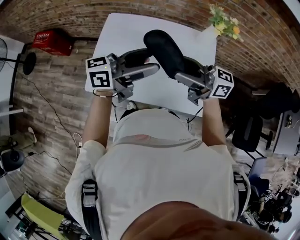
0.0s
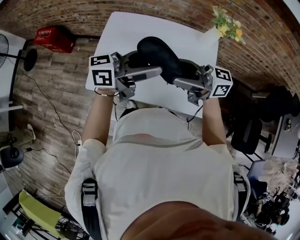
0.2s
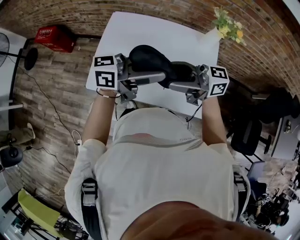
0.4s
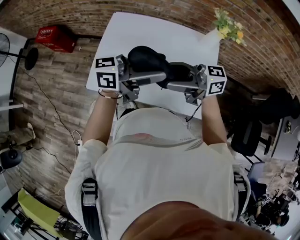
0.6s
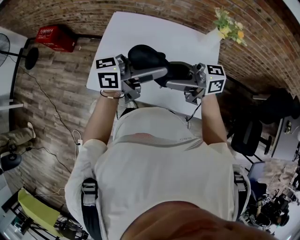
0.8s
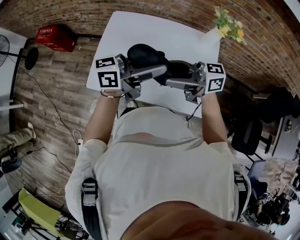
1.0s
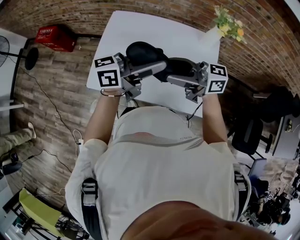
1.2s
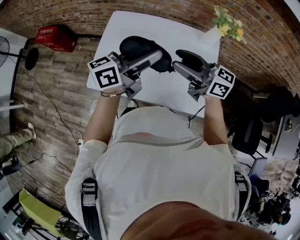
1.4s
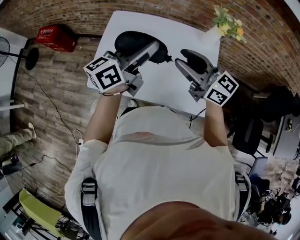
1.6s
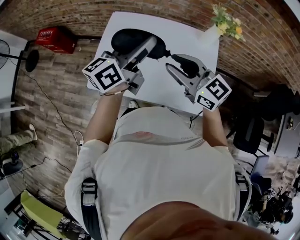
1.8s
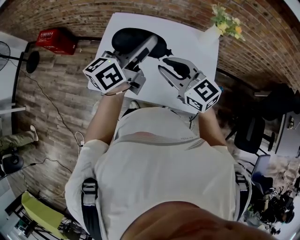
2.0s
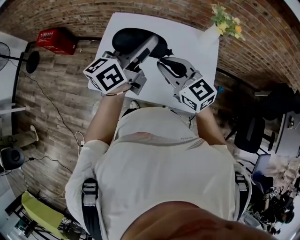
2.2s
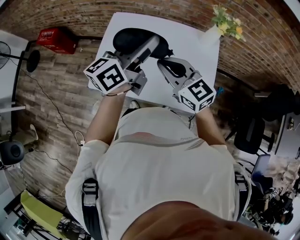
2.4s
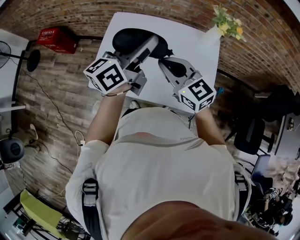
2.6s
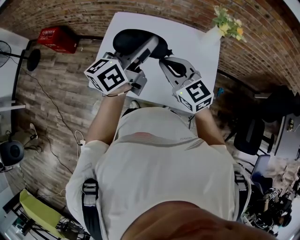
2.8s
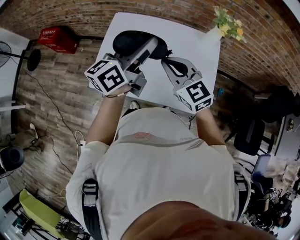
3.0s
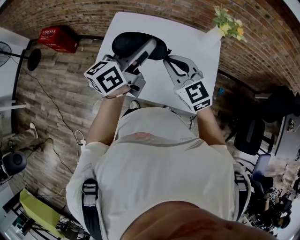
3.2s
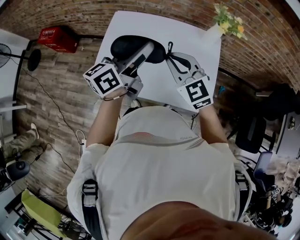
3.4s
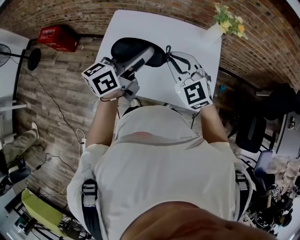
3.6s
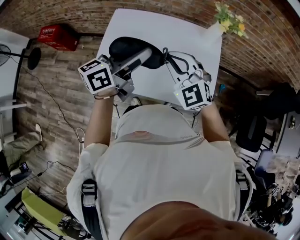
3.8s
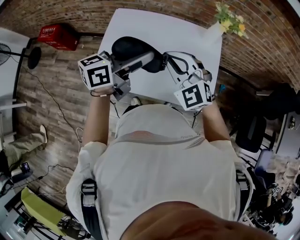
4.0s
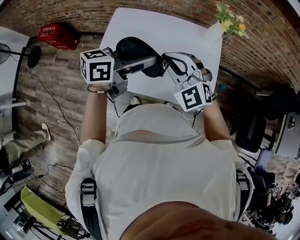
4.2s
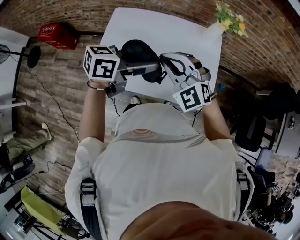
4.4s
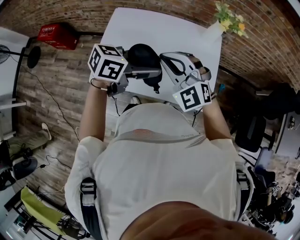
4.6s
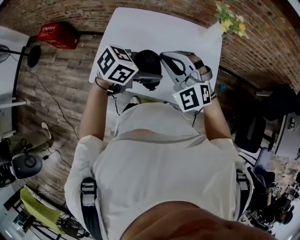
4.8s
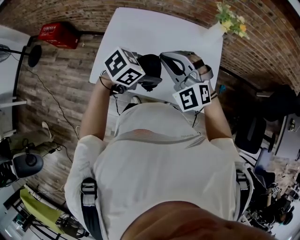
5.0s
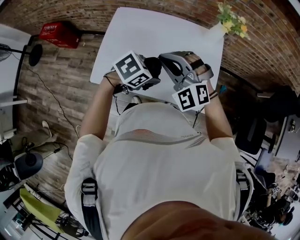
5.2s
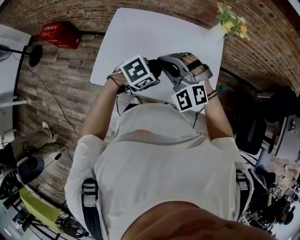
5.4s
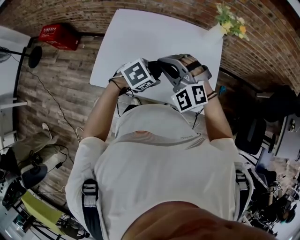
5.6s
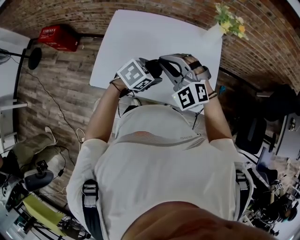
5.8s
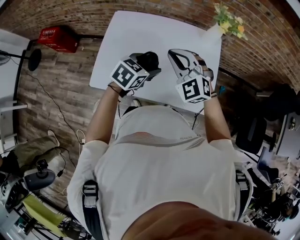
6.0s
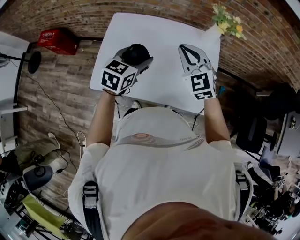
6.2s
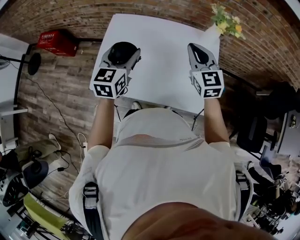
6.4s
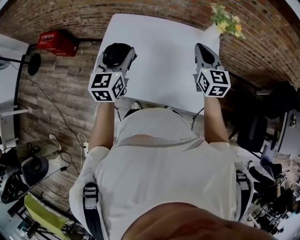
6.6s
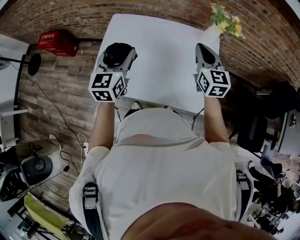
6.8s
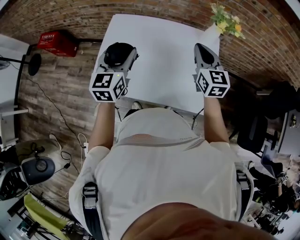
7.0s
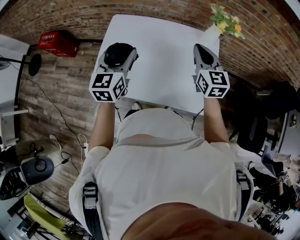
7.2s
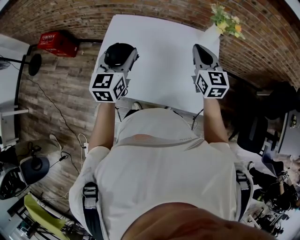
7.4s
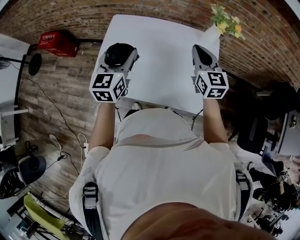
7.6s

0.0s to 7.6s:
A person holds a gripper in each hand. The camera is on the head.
0.0s to 1.6s: The right gripper changes its angle by some 30 degrees. Meanwhile the left gripper ends up about 5 cm from where it was, and turns by about 30 degrees.
1.6s to 3.0s: The right gripper travels to the left by roughly 5 cm, and changes its angle by some 30 degrees.
3.0s to 4.6s: The right gripper rotates roughly 40 degrees. Meanwhile the left gripper travels backward and downward by about 10 cm, and swivels approximately 50 degrees.
4.6s to 6.0s: The right gripper shifts by roughly 5 cm. Meanwhile the left gripper is displaced downward by some 10 cm, and rotates approximately 30 degrees.
6.0s to 7.6s: The right gripper moves to the right, about 10 cm, and rolls clockwise, seen from behind, by approximately 40 degrees; the left gripper shifts about 15 cm to the left and upward, and changes its angle by roughly 50 degrees.

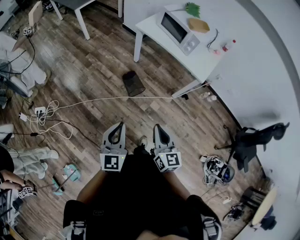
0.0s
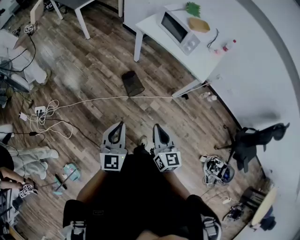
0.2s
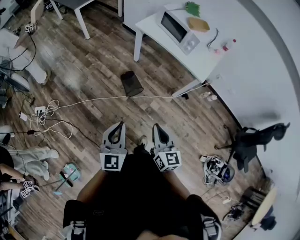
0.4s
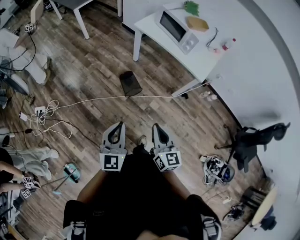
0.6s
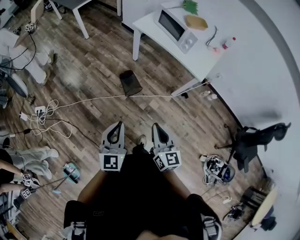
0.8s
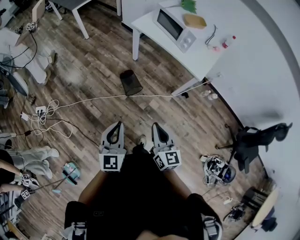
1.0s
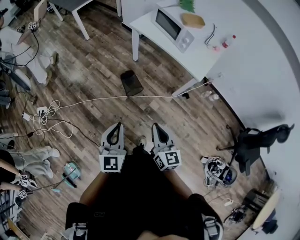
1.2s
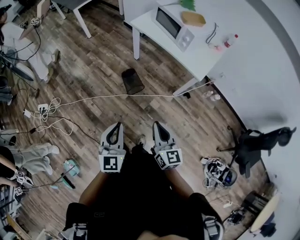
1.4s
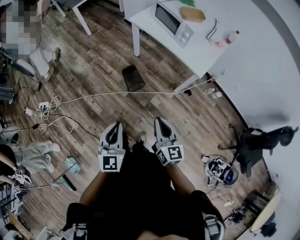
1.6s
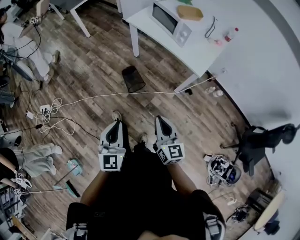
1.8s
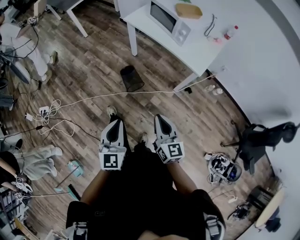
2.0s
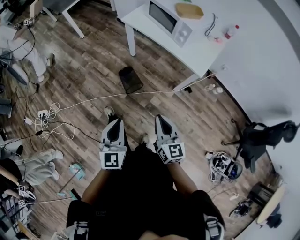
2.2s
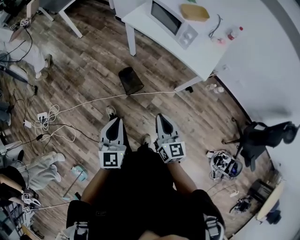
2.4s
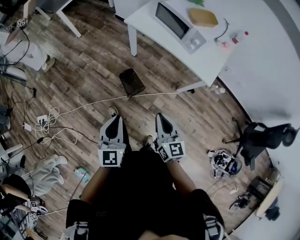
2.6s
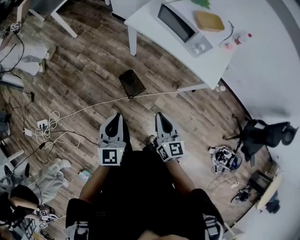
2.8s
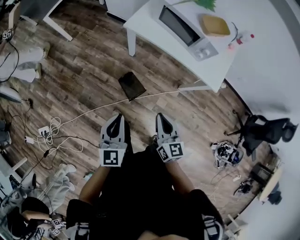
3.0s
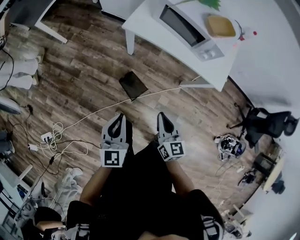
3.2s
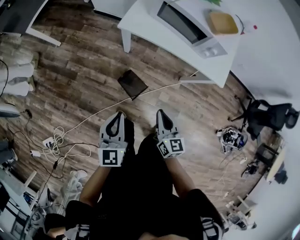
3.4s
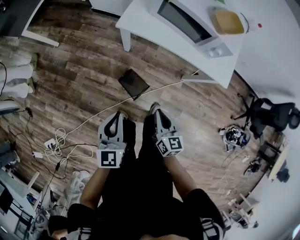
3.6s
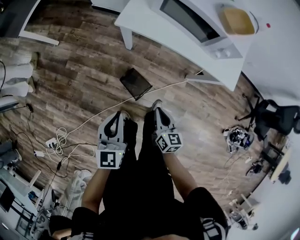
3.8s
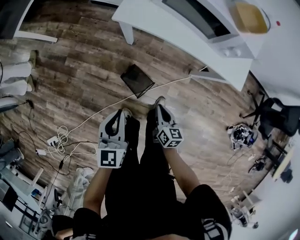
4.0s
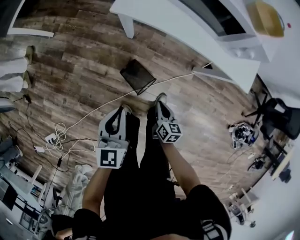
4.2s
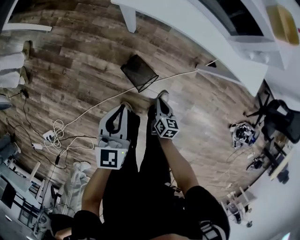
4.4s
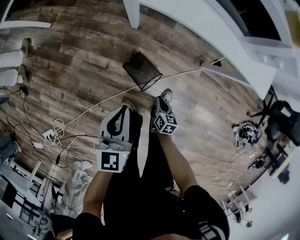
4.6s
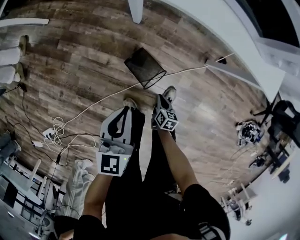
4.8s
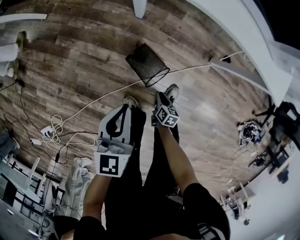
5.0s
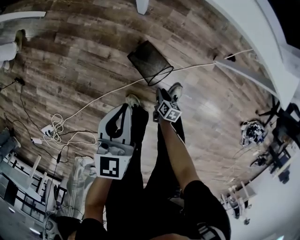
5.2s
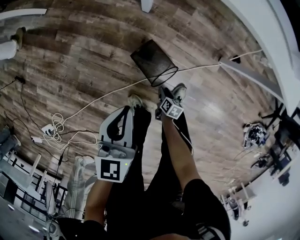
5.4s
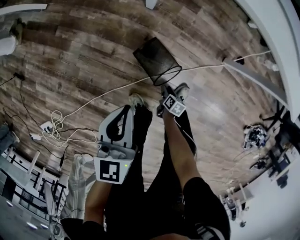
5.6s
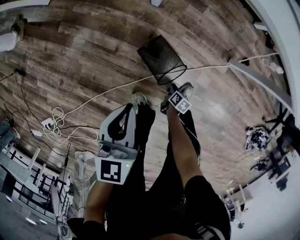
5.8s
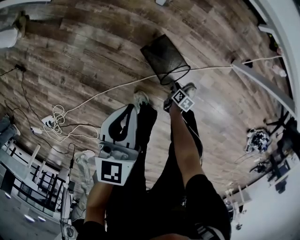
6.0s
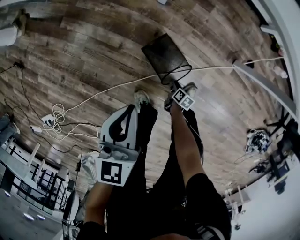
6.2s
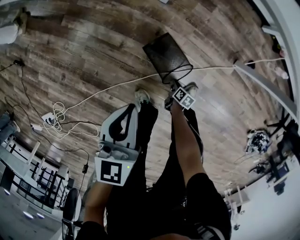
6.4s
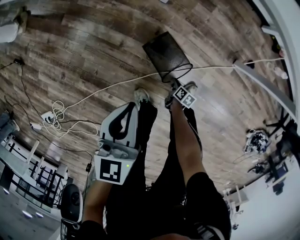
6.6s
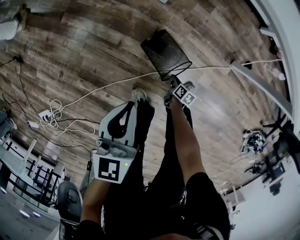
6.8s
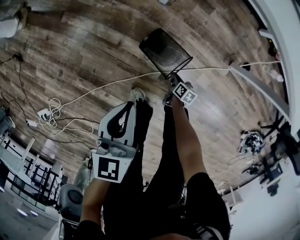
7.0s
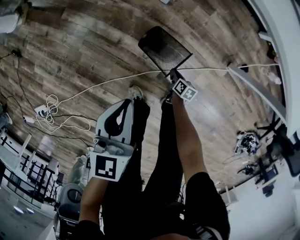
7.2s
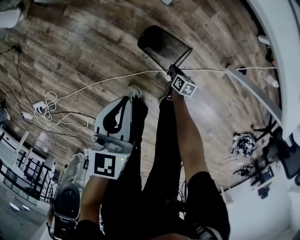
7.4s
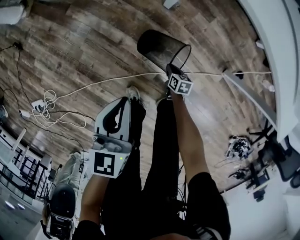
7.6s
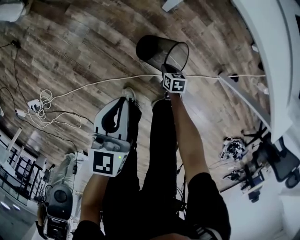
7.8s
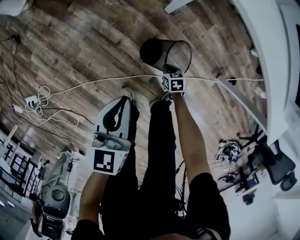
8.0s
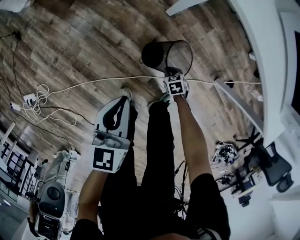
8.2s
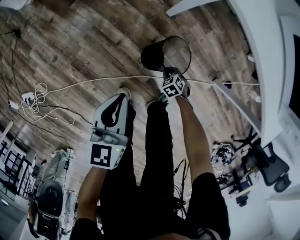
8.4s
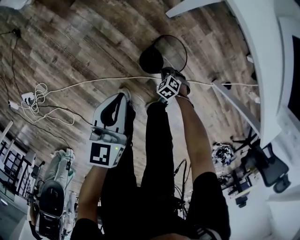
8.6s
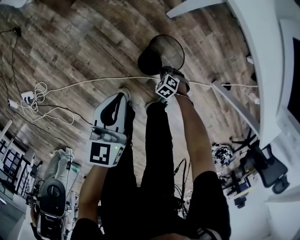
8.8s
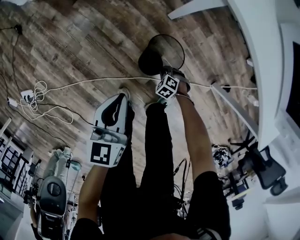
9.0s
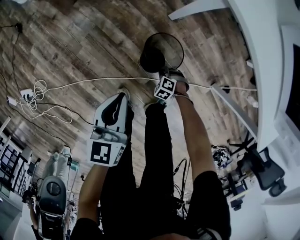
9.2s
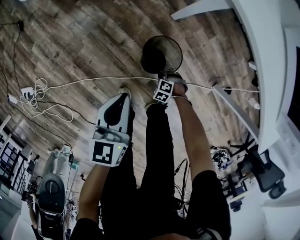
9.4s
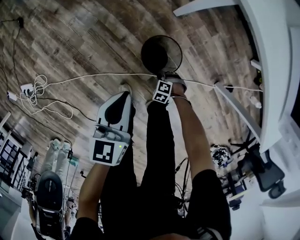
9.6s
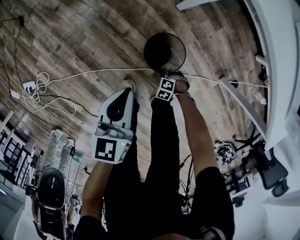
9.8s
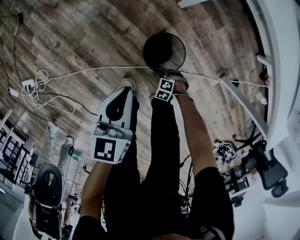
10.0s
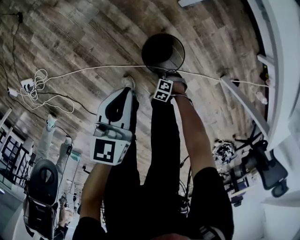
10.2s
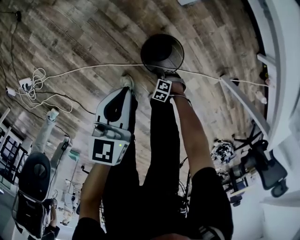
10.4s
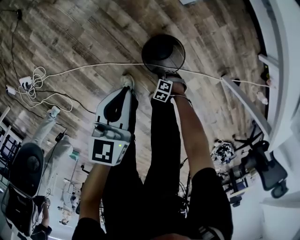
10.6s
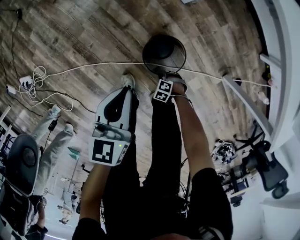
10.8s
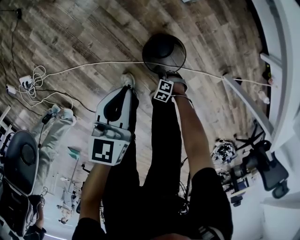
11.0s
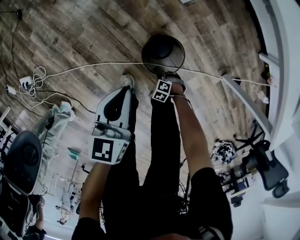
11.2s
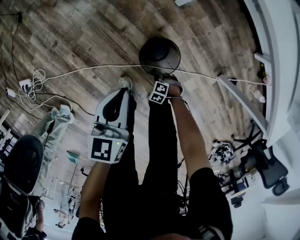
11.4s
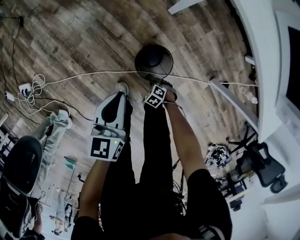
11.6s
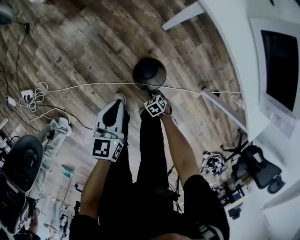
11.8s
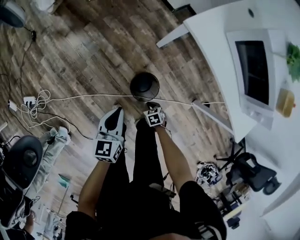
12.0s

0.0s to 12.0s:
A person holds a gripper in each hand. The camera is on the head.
0.0s to 1.6s: The grippers both shift to the right by roughly 10 cm.
1.6s to 3.0s: The right gripper goes approximately 30 cm forward and to the left; the left gripper travels forward by about 30 cm.
3.0s to 4.4s: The left gripper is displaced downward and forward by approximately 25 cm, while the right gripper goes some 40 cm downward, and swivels some 30 degrees.
4.4s to 6.0s: The left gripper is displaced downward and to the left by some 20 cm. The right gripper moves downward, roughly 40 cm, swivels about 30 degrees, and opens.
6.0s to 7.6s: The right gripper travels forward and upward by approximately 15 cm, rotates roughly 40 degrees, and closes its fingers.
7.6s to 9.0s: The right gripper rotates around the line of its fingers by roughly 80 degrees, counterclockwise from behind.
9.0s to 10.4s: The left gripper shifts by roughly 5 cm, while the right gripper changes place by some 15 cm.
10.4s to 12.0s: The left gripper moves upward, about 10 cm. Meanwhile the right gripper is displaced upward by some 20 cm, and twists roughly 50 degrees clockwise, seen from behind.

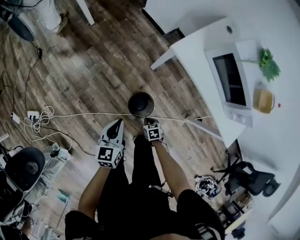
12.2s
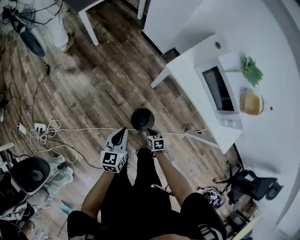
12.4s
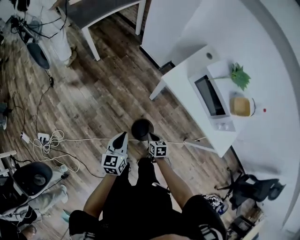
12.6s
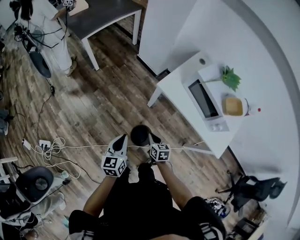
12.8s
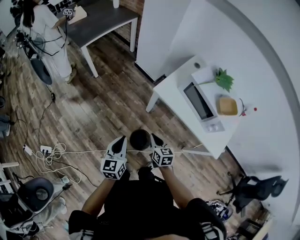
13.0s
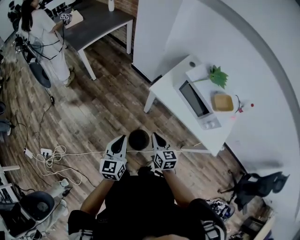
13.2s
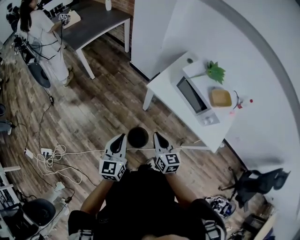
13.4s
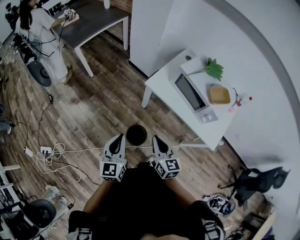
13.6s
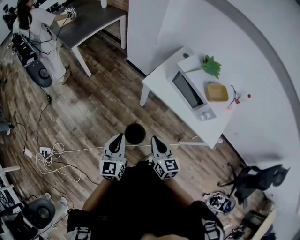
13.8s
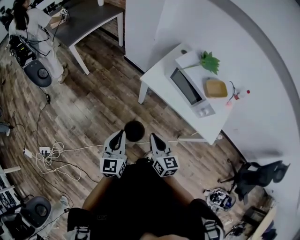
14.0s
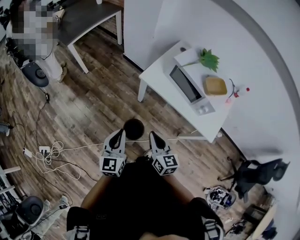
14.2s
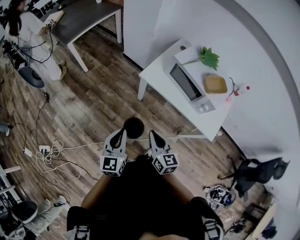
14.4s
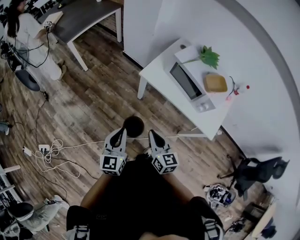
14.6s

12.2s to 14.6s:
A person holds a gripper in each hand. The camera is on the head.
12.2s to 13.4s: The left gripper goes approximately 25 cm upward, and changes its angle by approximately 20 degrees; the right gripper moves upward, about 50 cm, and tips its fingers upward by about 50 degrees.
13.4s to 14.6s: The right gripper changes place by some 5 cm.

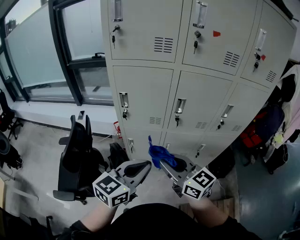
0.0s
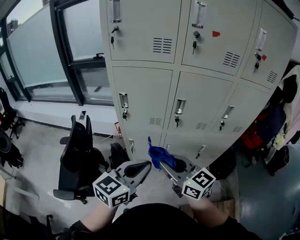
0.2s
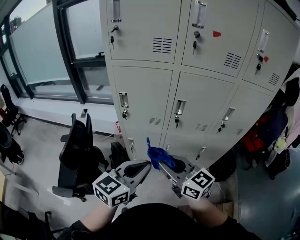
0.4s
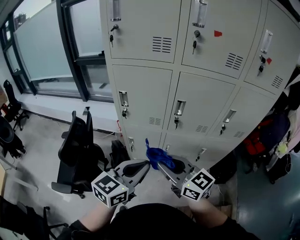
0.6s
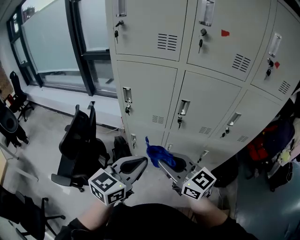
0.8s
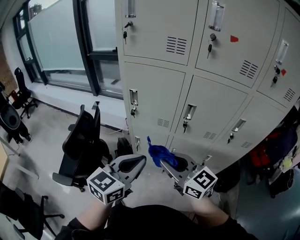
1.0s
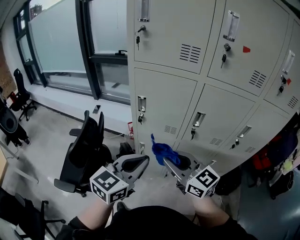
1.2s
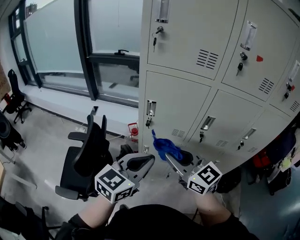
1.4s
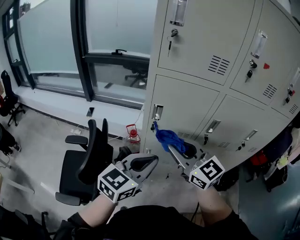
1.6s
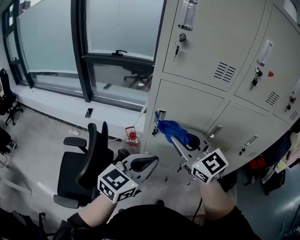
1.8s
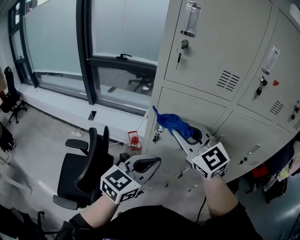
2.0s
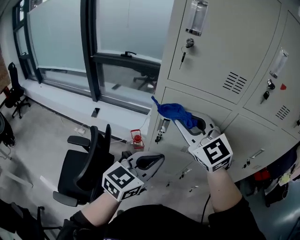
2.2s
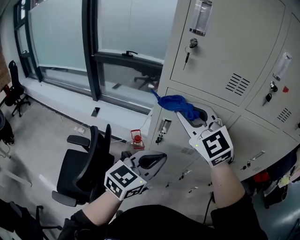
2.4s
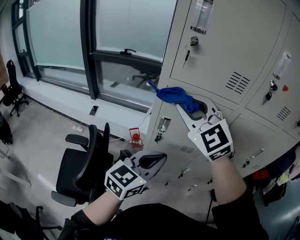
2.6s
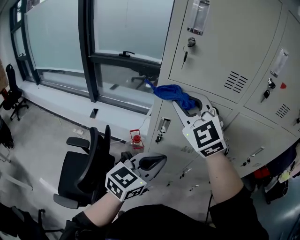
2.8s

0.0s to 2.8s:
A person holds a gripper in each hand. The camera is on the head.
0.0s to 1.4s: The two grippers go roughly 10 cm forward and to the left.
1.4s to 2.8s: The left gripper shifts approximately 10 cm forward. Meanwhile the right gripper moves forward, upward and to the left, about 25 cm, and rolls counterclockwise, seen from behind, by some 40 degrees.
